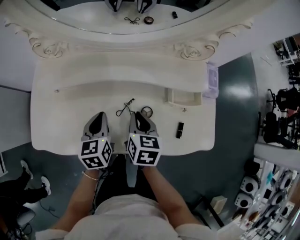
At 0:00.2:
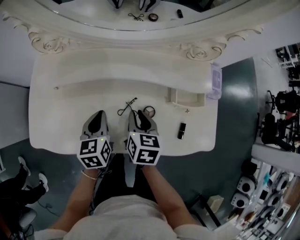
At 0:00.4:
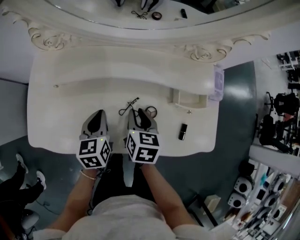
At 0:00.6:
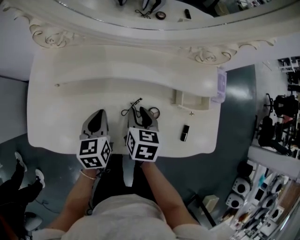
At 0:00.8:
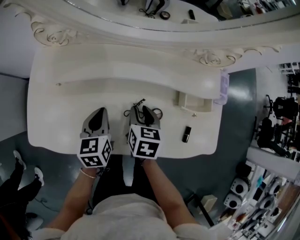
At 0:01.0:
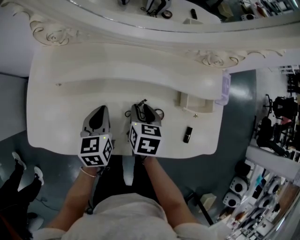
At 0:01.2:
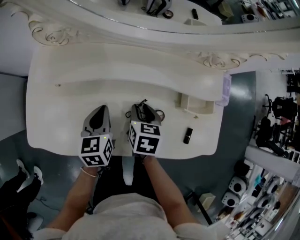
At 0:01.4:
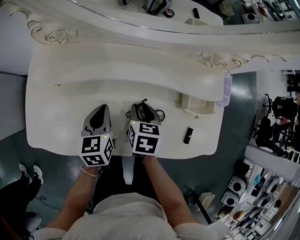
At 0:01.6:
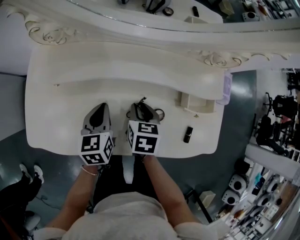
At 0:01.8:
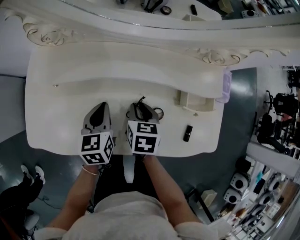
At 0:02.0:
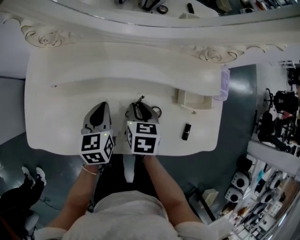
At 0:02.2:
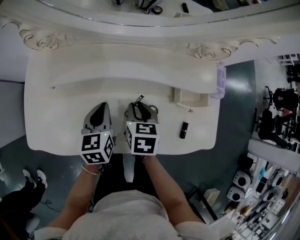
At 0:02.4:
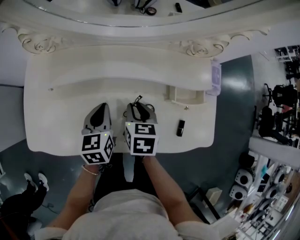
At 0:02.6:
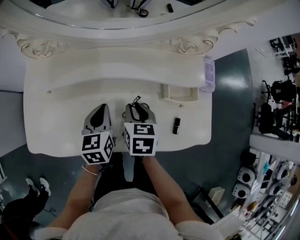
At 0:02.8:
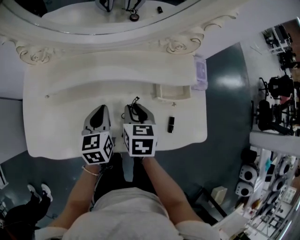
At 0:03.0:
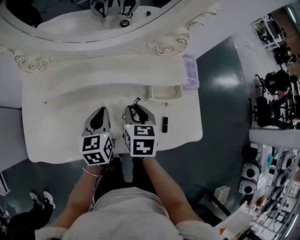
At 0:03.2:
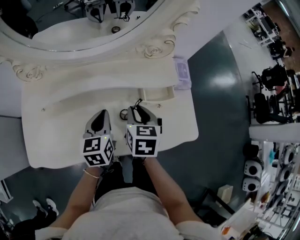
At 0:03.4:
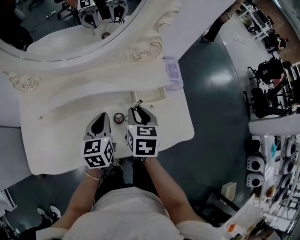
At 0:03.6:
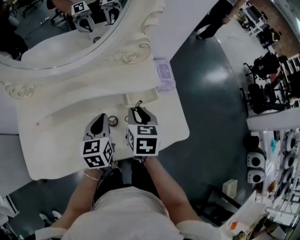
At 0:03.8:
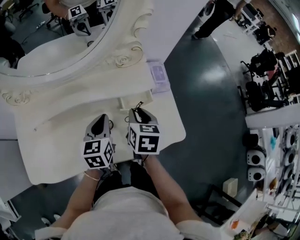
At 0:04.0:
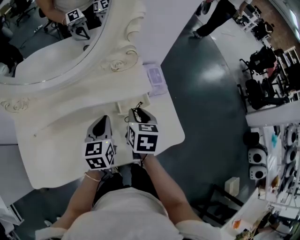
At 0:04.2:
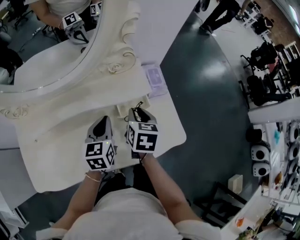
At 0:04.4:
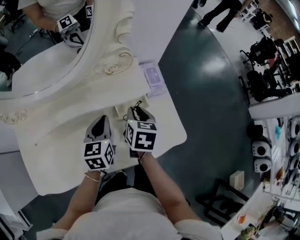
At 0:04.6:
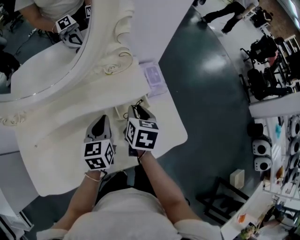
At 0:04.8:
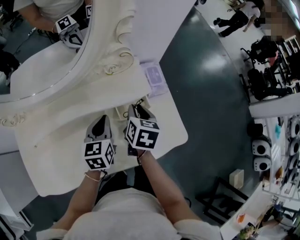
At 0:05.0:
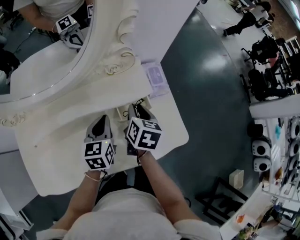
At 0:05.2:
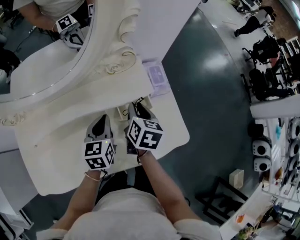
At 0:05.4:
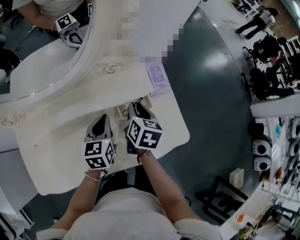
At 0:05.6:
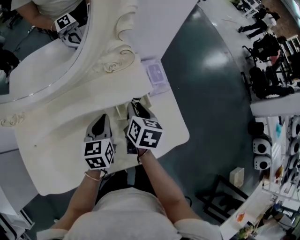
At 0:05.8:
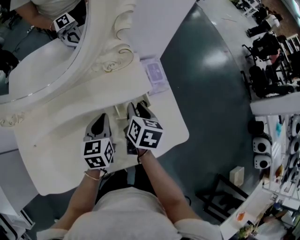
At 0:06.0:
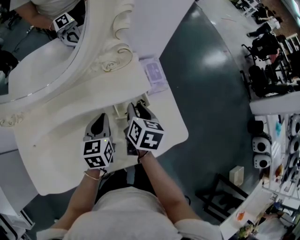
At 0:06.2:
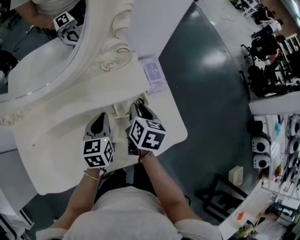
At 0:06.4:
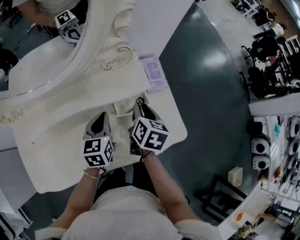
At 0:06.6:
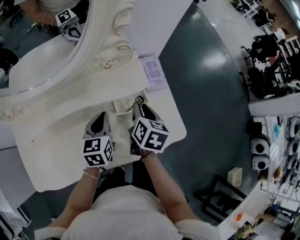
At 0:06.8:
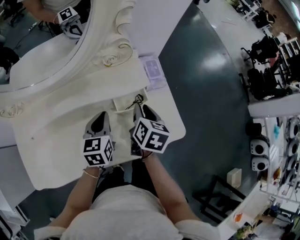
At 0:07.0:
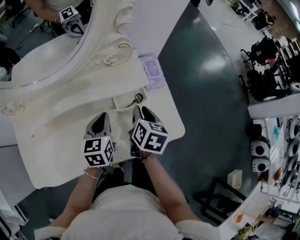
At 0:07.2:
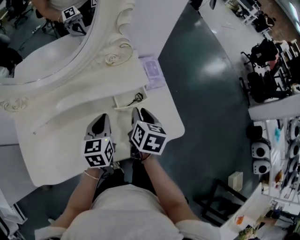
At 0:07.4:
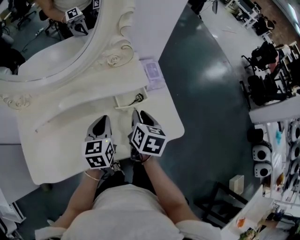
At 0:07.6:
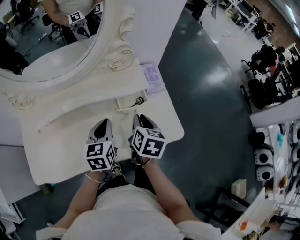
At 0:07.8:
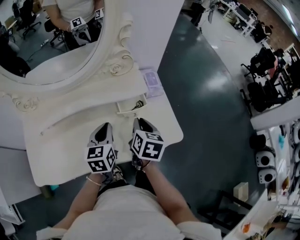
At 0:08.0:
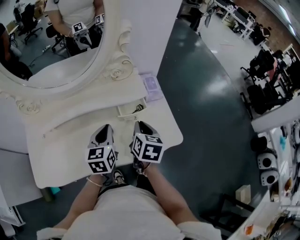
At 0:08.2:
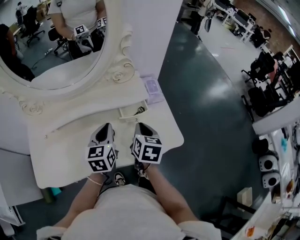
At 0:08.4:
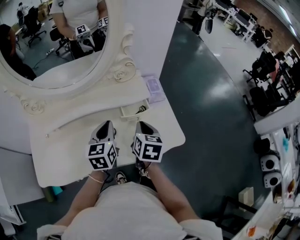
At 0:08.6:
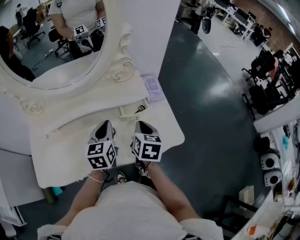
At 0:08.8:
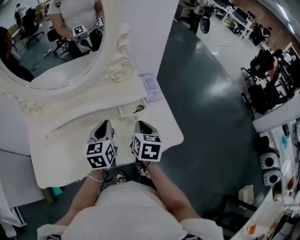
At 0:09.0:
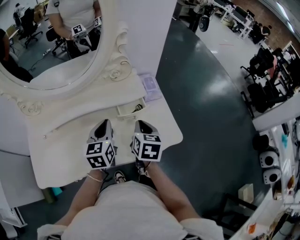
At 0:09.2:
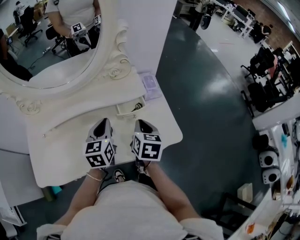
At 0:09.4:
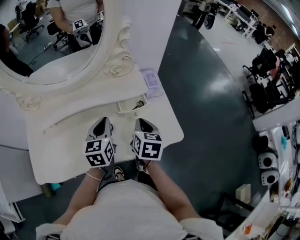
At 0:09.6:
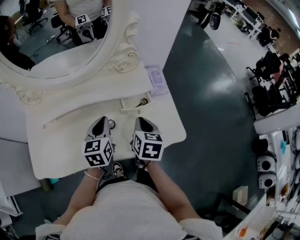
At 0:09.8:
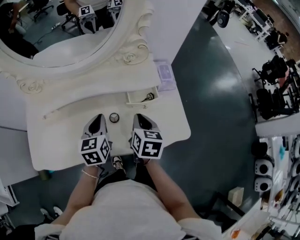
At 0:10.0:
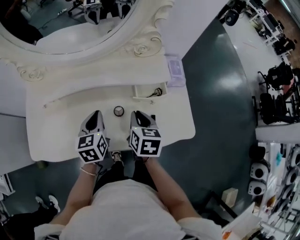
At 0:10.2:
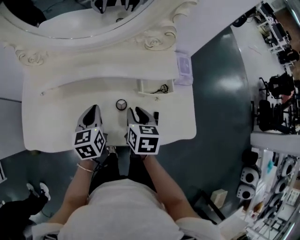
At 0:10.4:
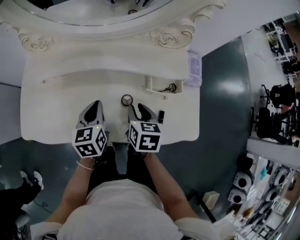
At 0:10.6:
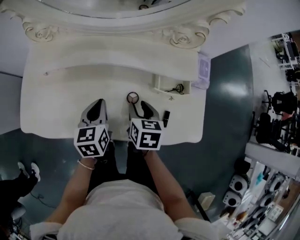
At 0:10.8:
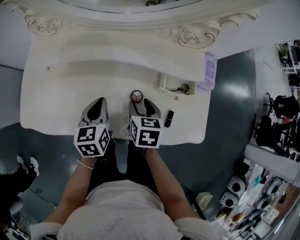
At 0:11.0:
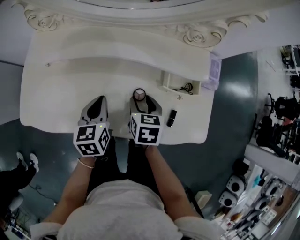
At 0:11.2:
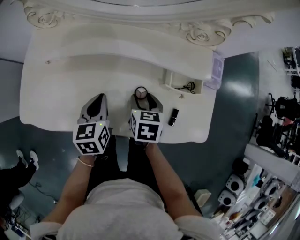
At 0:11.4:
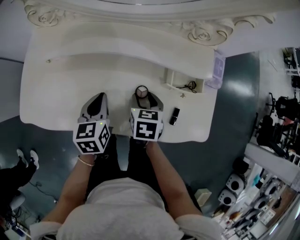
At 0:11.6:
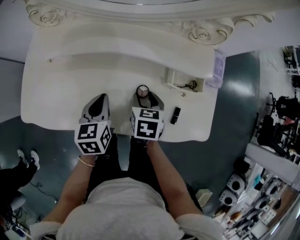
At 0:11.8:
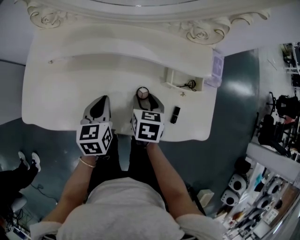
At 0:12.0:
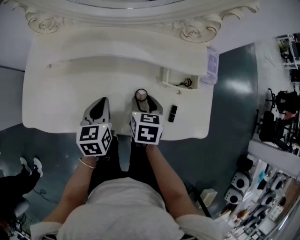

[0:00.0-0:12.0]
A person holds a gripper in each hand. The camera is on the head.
0:00.0 to 0:01.6: The right gripper travels downward by approximately 5 cm, and opens up. The left gripper ends up roughly 5 cm from where it was.
0:01.6 to 0:03.0: The left gripper is displaced to the right and upward by roughly 10 cm; the right gripper moves upward and to the right, about 10 cm.
0:03.0 to 0:04.4: Both grippers move to the right and forward, some 15 cm. The right gripper rotates some 20 degrees.
0:04.4 to 0:06.0: The grippers make only small movements.
0:06.0 to 0:07.6: Both grippers travel together backward, roughly 10 cm.
0:07.6 to 0:09.0: The grippers move only a little.
0:09.0 to 0:10.4: The two grippers go about 15 cm to the left and downward. The right gripper swivels approximately 30 degrees. Meanwhile the left gripper changes its angle by some 20 degrees.
0:10.4 to 0:12.0: The right gripper opens up.

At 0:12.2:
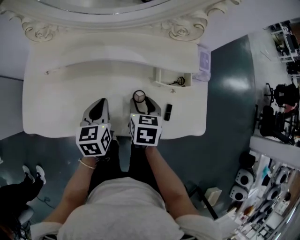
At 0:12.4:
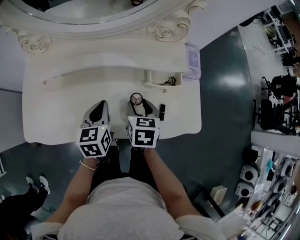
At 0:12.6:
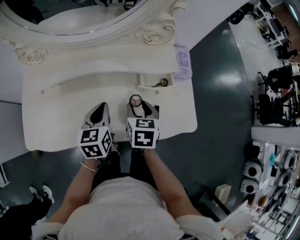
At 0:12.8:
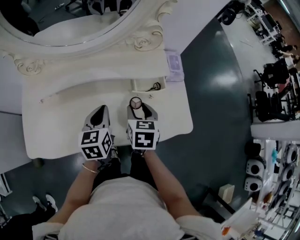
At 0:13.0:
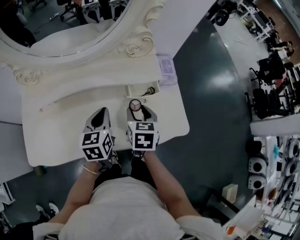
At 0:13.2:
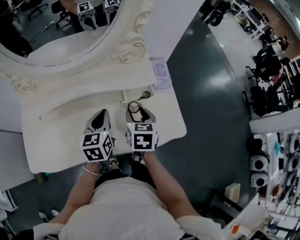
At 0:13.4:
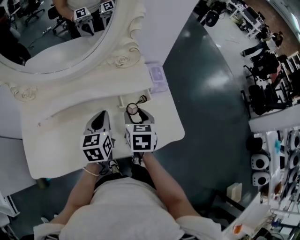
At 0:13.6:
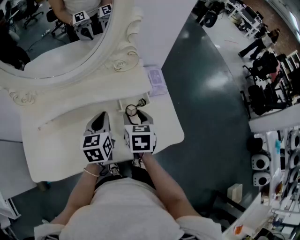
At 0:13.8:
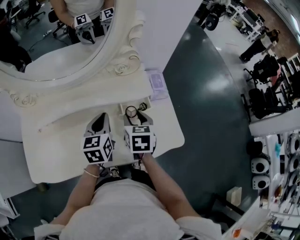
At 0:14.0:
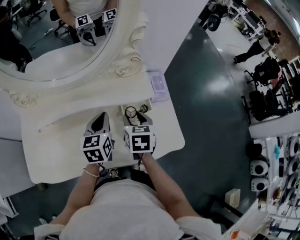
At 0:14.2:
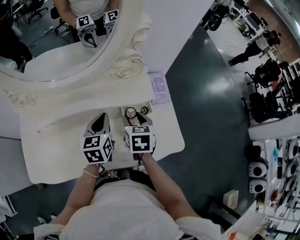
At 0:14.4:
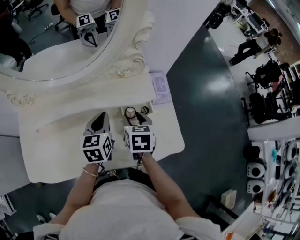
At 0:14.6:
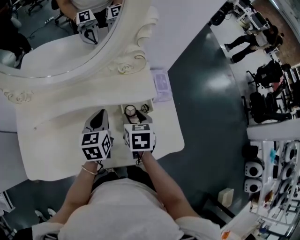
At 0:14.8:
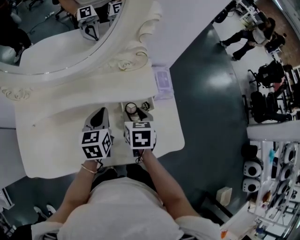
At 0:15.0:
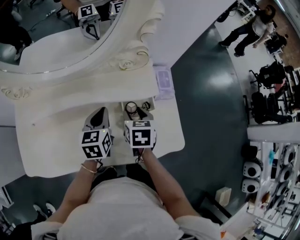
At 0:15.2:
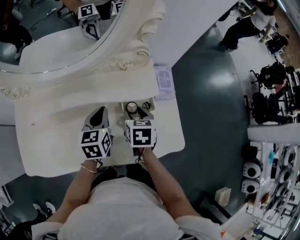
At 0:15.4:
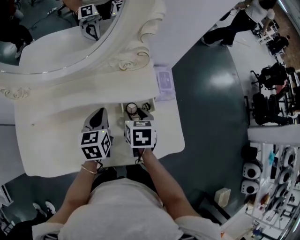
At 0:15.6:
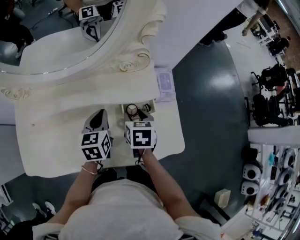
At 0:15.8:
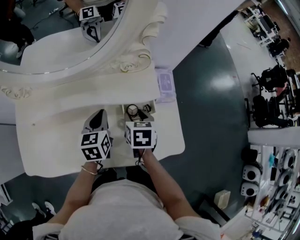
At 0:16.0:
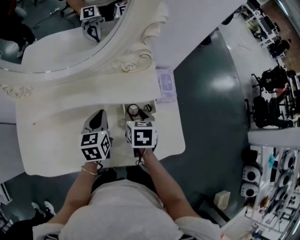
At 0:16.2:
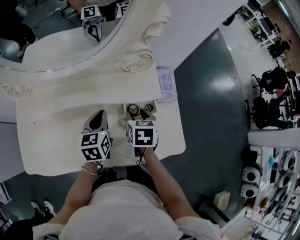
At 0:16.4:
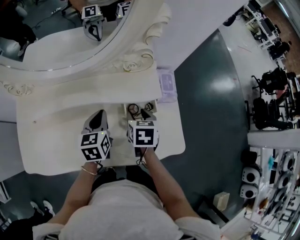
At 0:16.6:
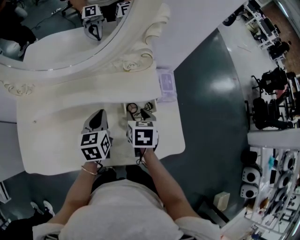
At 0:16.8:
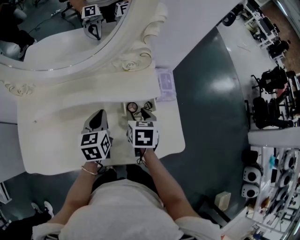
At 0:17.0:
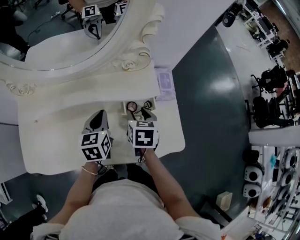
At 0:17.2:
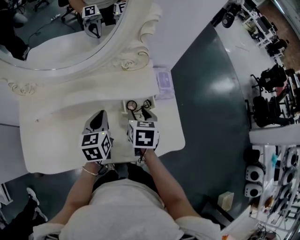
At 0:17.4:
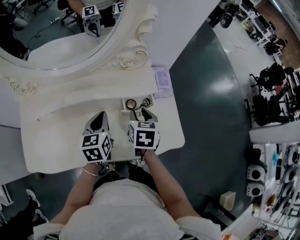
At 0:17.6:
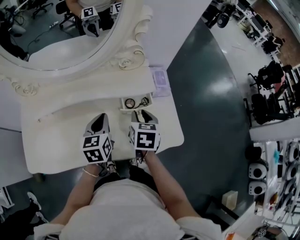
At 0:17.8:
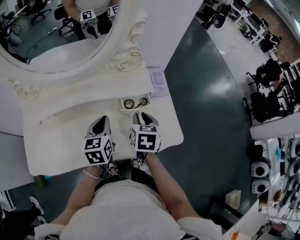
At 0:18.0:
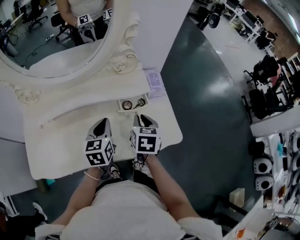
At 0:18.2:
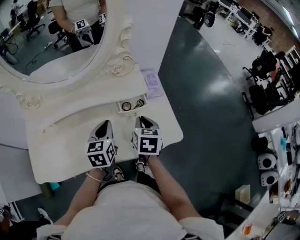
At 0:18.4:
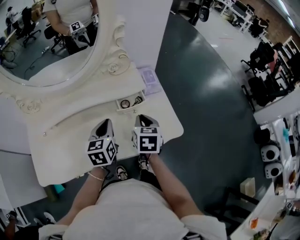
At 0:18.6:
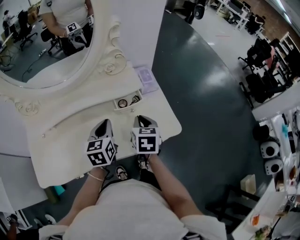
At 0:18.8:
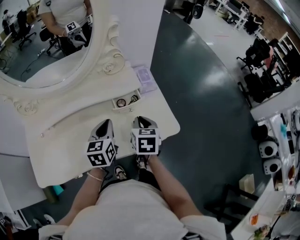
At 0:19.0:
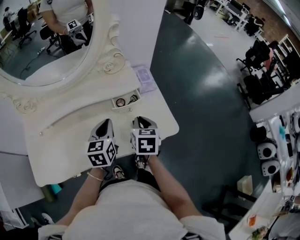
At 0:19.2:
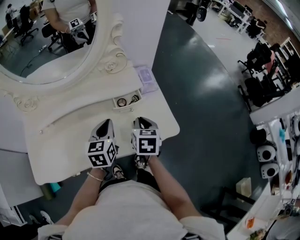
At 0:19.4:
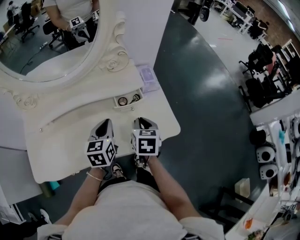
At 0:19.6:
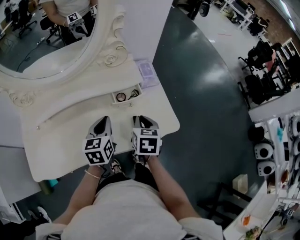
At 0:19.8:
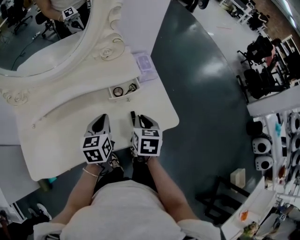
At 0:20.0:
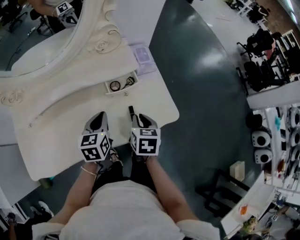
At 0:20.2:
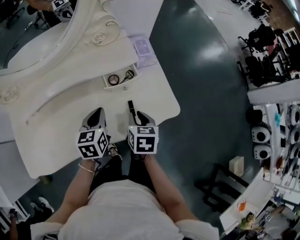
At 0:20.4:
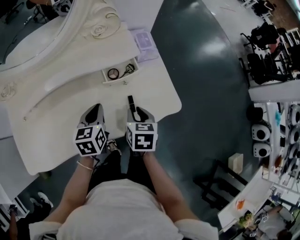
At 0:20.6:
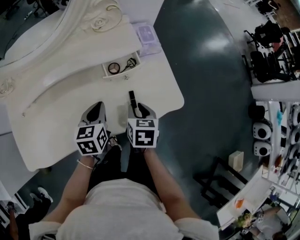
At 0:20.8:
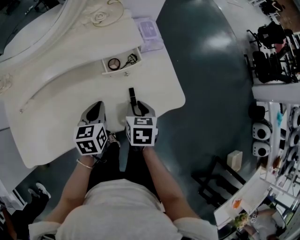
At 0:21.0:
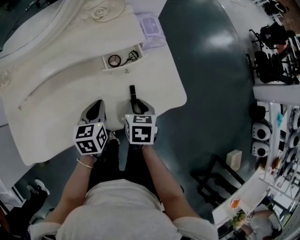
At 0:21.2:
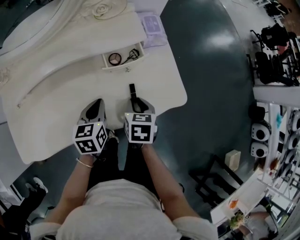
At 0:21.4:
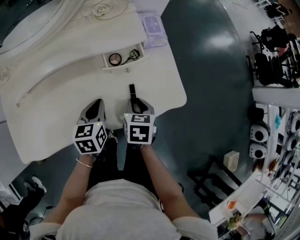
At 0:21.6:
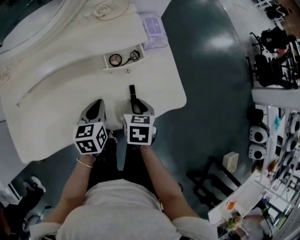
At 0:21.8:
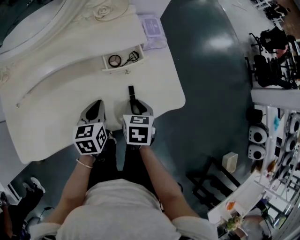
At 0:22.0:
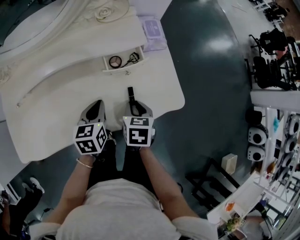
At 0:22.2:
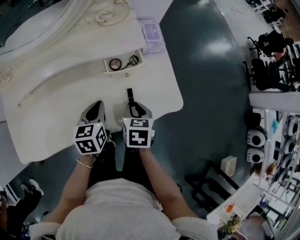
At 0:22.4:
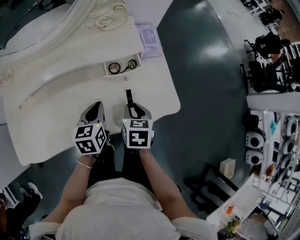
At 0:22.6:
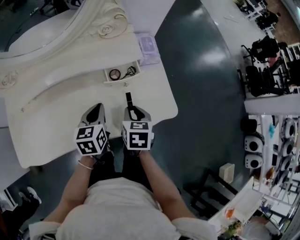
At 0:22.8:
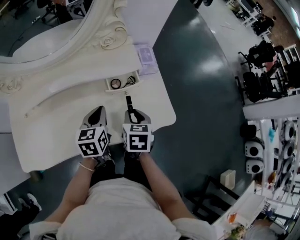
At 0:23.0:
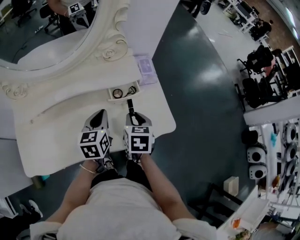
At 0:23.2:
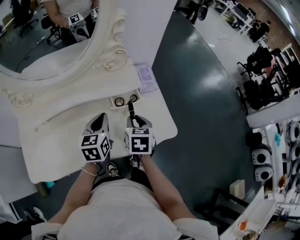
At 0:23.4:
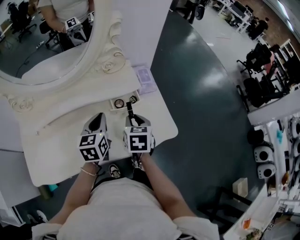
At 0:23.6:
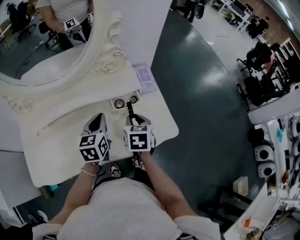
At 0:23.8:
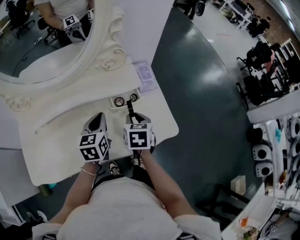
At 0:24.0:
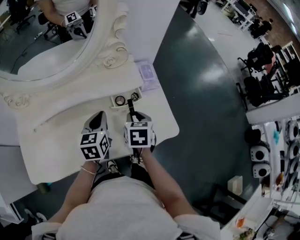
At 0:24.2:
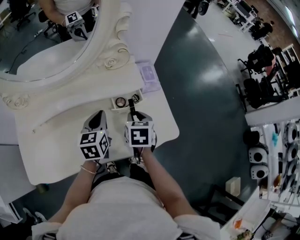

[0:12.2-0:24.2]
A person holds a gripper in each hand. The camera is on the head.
0:12.2 to 0:13.8: The right gripper is displaced to the right, upward and forward by some 15 cm; the left gripper travels to the right, forward and upward by about 15 cm.
0:13.8 to 0:15.2: The left gripper changes place by some 5 cm, while the right gripper changes place by about 5 cm.
0:15.2 to 0:16.6: The grippers make only small movements.
0:16.6 to 0:18.2: The right gripper heads backward and upward, covering approximately 10 cm, and closes up, while the left gripper heads backward, covering about 10 cm.
0:18.2 to 0:19.8: The right gripper ends up roughly 5 cm from where it was.
0:19.8 to 0:21.2: Both grippers travel together downward, approximately 10 cm.
0:21.2 to 0:22.6: The right gripper changes place by approximately 5 cm.
0:22.6 to 0:24.2: The left gripper goes approximately 10 cm forward and upward; the right gripper heads forward, covering roughly 10 cm.
